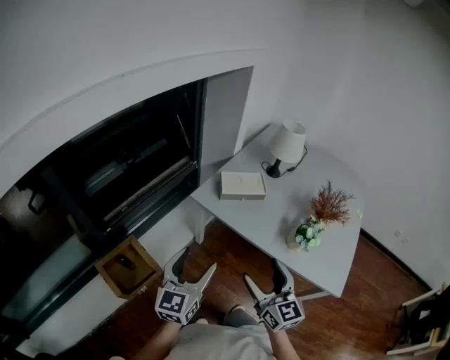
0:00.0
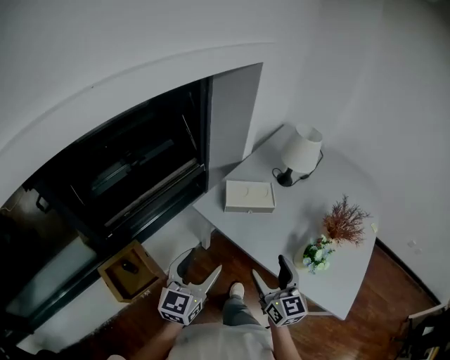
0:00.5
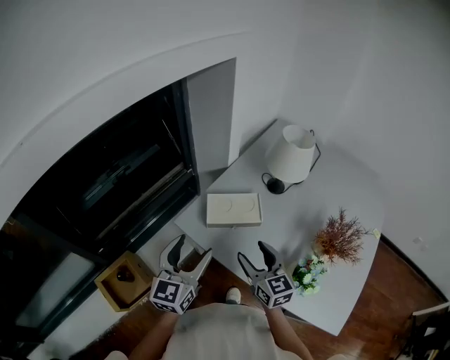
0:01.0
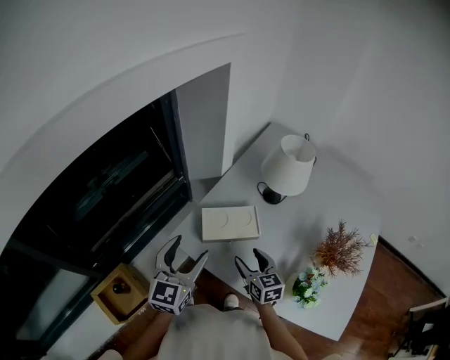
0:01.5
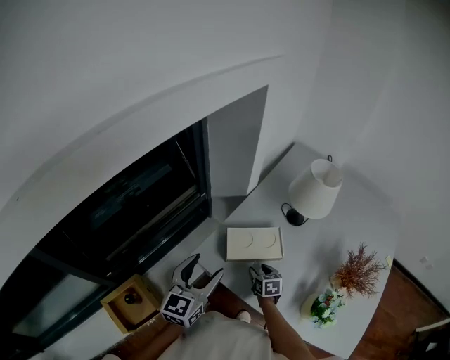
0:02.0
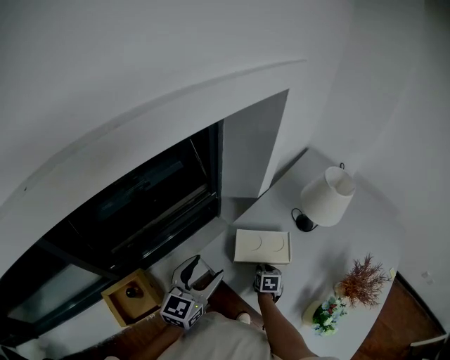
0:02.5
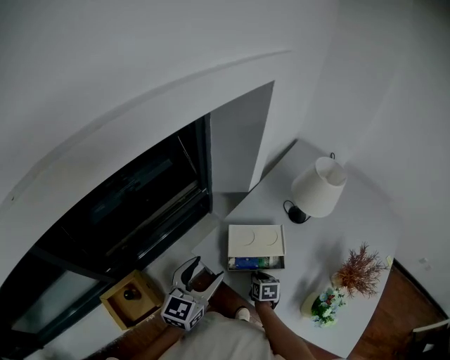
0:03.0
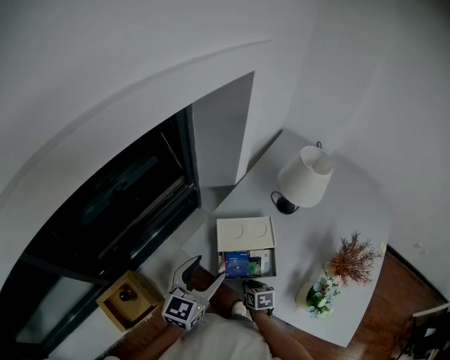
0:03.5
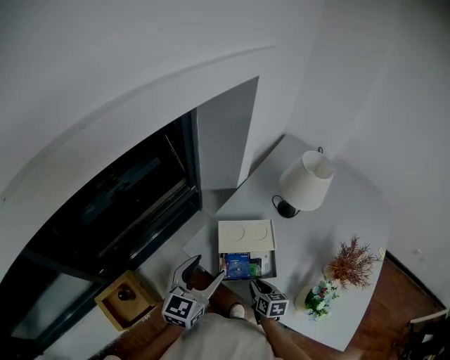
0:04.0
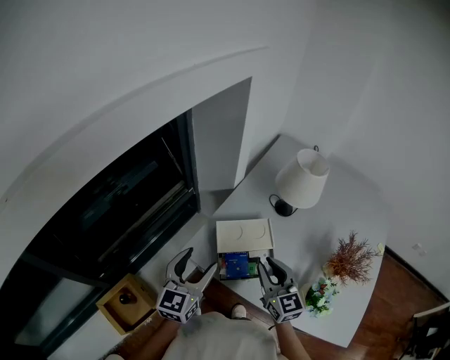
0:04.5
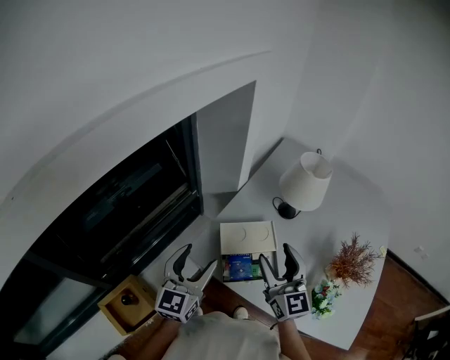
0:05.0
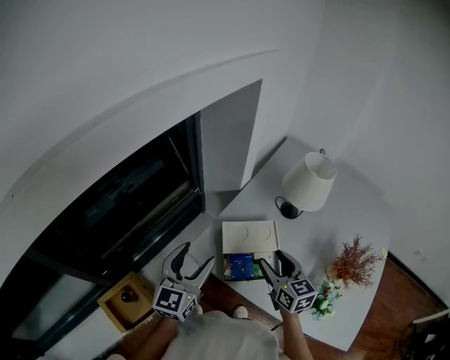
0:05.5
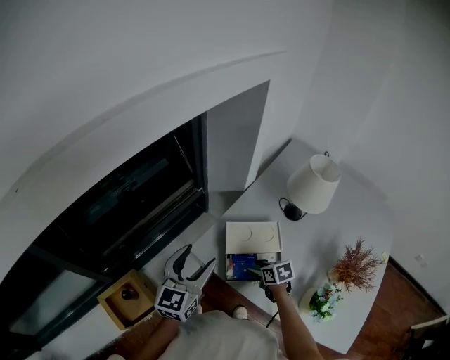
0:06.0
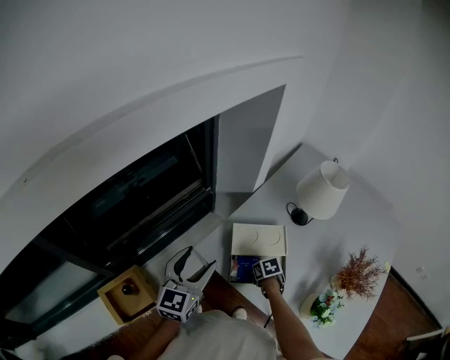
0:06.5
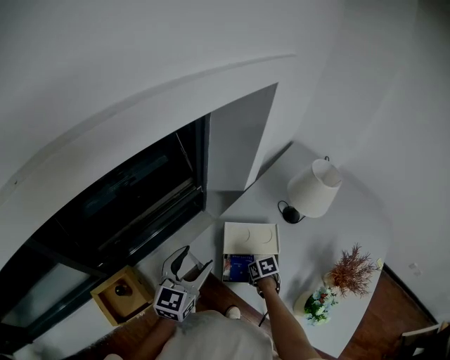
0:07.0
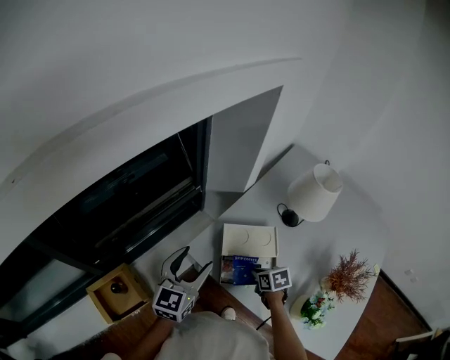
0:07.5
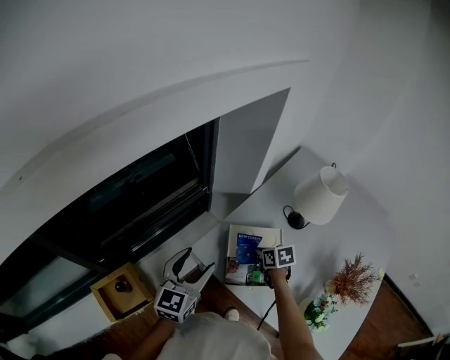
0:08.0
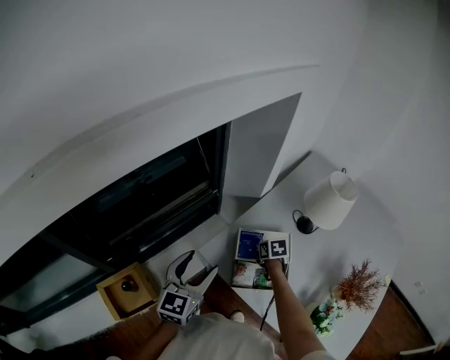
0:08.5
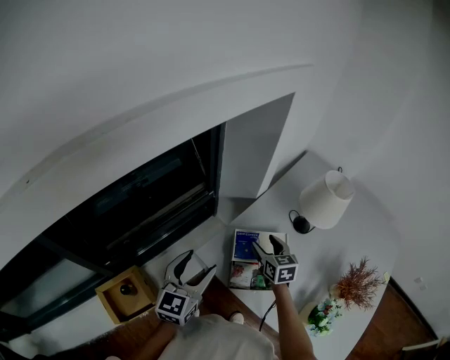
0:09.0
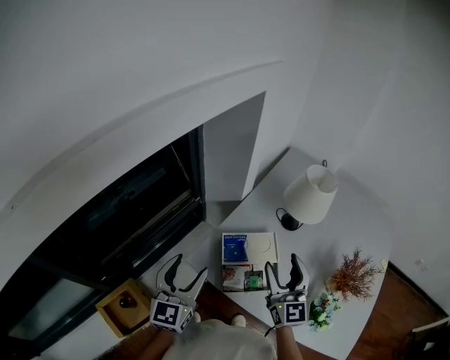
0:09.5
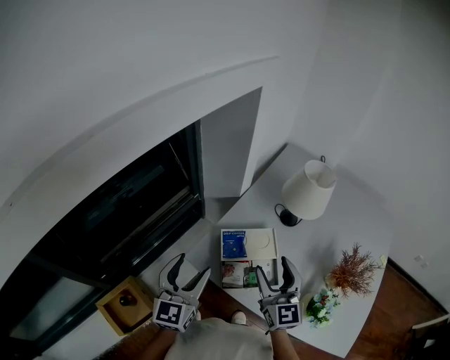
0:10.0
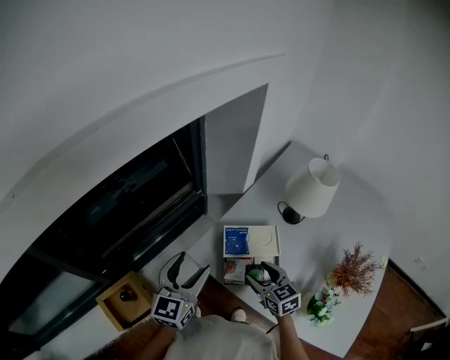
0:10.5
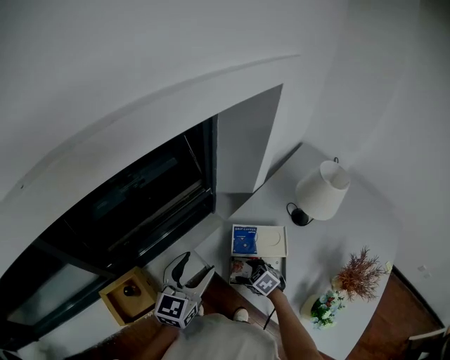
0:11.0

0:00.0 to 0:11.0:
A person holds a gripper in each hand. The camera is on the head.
0:00.0 to 0:02.0: The left gripper heads forward, covering roughly 35 cm; the right gripper goes some 50 cm forward and downward, and points its fingers some 40 degrees further downward.
0:02.0 to 0:03.5: The right gripper moves backward, some 10 cm, and closes its fingers.
0:03.5 to 0:05.5: The left gripper shifts some 5 cm to the left, while the right gripper travels upward by some 25 cm, points its fingers roughly 40 degrees further upward, and opens up.
0:05.5 to 0:07.5: The right gripper goes some 20 cm downward, angles its fingers downward, by roughly 40 degrees, and closes.
0:07.5 to 0:09.0: The right gripper travels forward and upward by about 15 cm, angles its fingers upward, by roughly 30 degrees, and opens its fingers.
0:09.0 to 0:11.0: The right gripper moves downward, backward and to the left, roughly 20 cm, and turns by approximately 40 degrees.

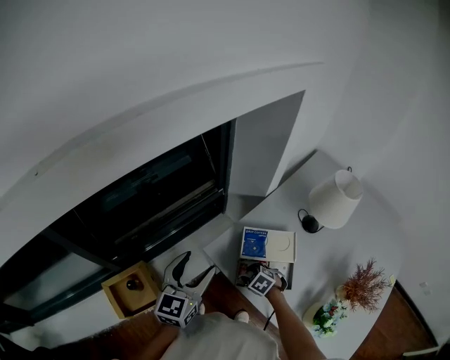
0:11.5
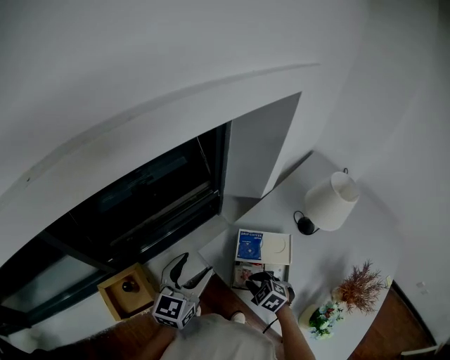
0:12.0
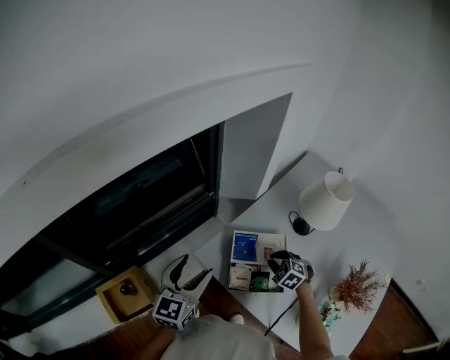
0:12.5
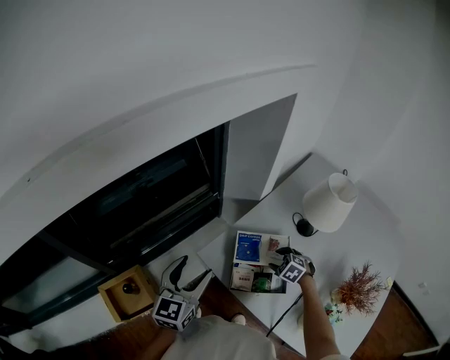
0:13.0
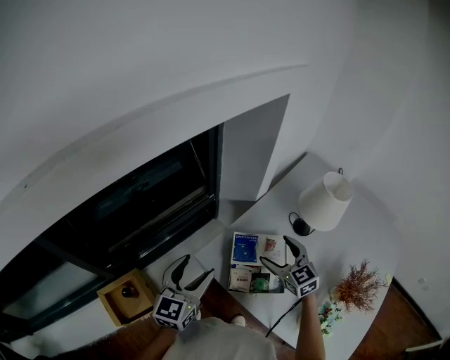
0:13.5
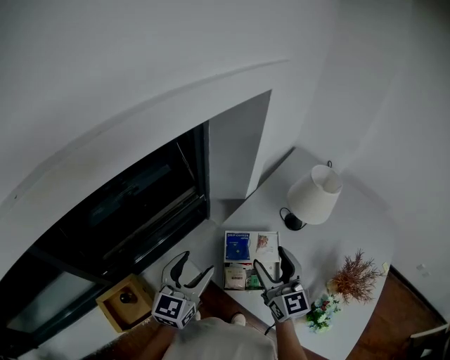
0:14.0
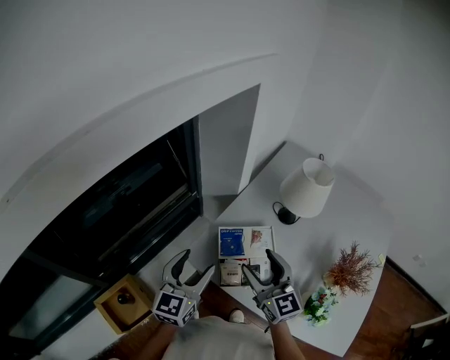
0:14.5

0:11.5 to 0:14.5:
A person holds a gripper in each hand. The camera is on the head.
0:11.5 to 0:13.0: The right gripper shifts approximately 15 cm to the right and forward.
0:13.0 to 0:14.5: The right gripper shifts approximately 25 cm upward, and points its fingers approximately 60 degrees further upward; the left gripper goes about 5 cm to the right.

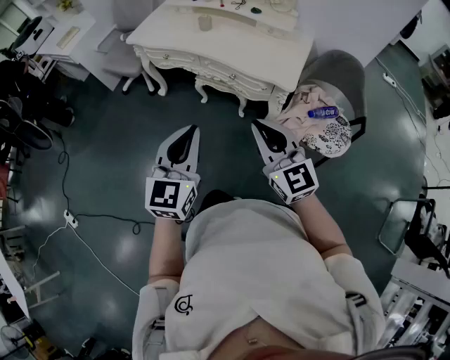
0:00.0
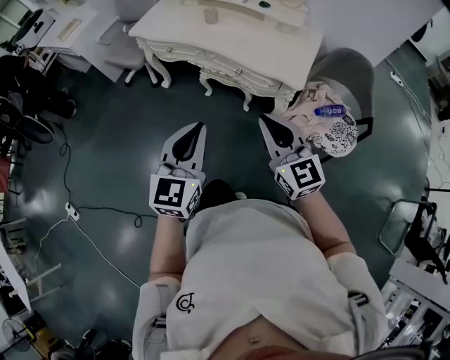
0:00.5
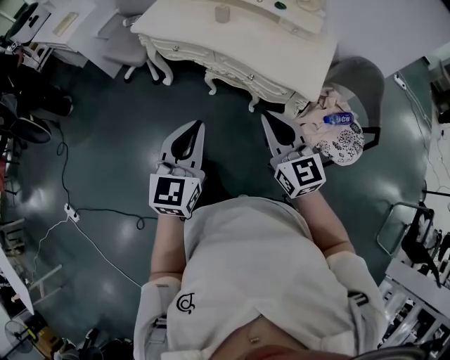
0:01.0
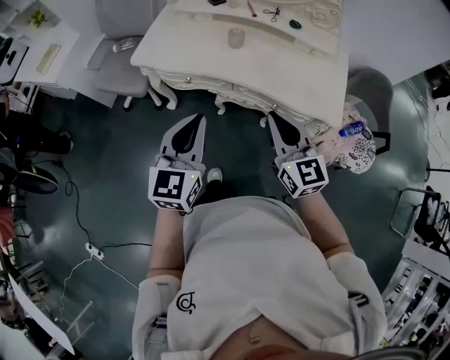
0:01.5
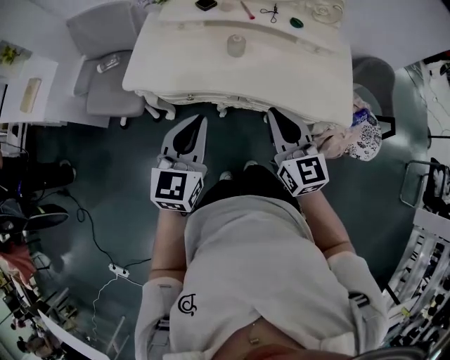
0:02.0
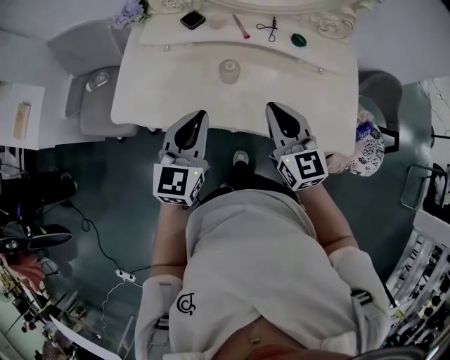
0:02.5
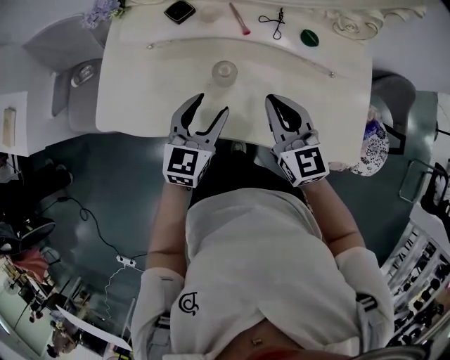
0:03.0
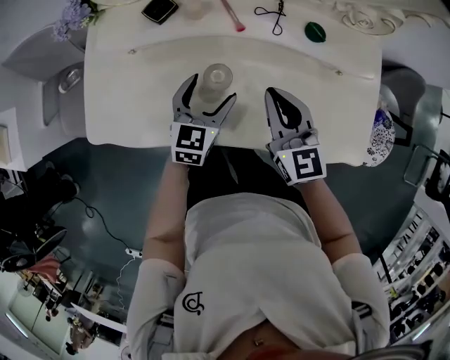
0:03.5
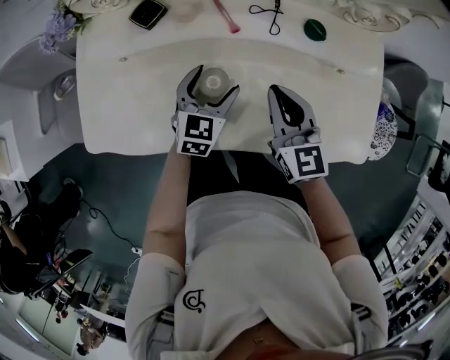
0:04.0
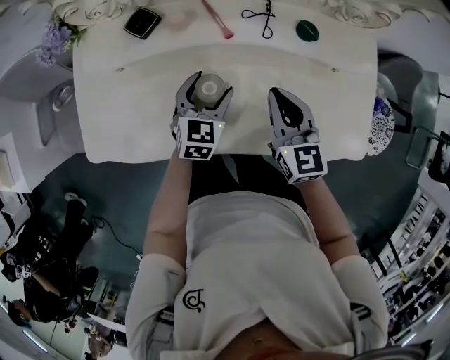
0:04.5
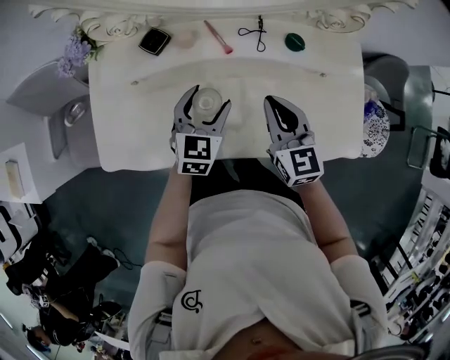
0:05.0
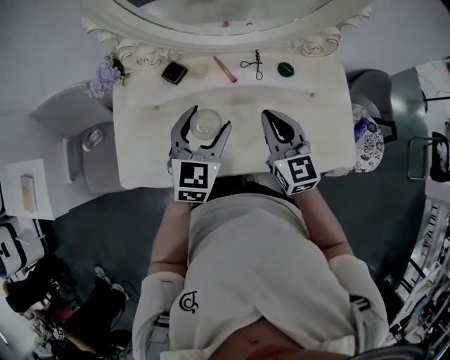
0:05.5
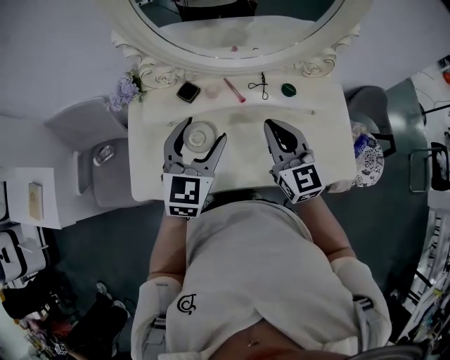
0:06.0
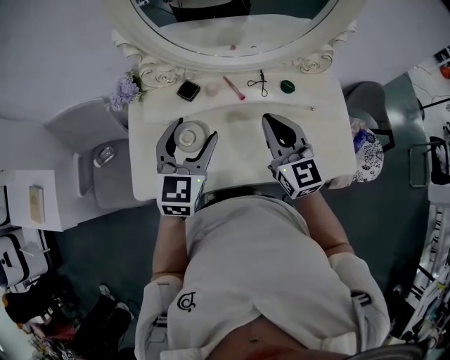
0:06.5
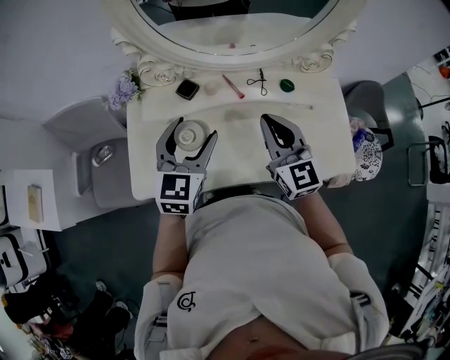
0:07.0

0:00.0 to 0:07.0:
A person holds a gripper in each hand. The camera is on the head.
0:00.0 to 0:02.0: Both grippers are carried forward and to the left, about 40 cm. The right gripper turns by roughly 30 degrees.
0:02.0 to 0:03.5: The two grippers go some 35 cm forward and downward. The left gripper opens.
0:03.5 to 0:05.0: The left gripper shifts by about 5 cm.
0:05.0 to 0:07.0: The left gripper travels upward and to the left by about 20 cm, while the right gripper moves upward, roughly 15 cm.

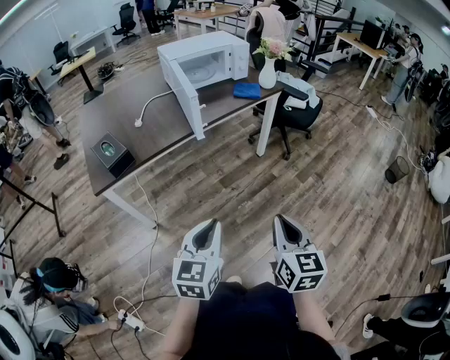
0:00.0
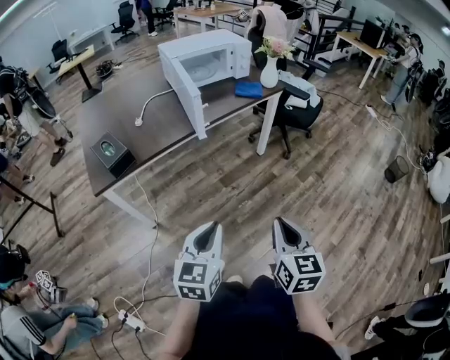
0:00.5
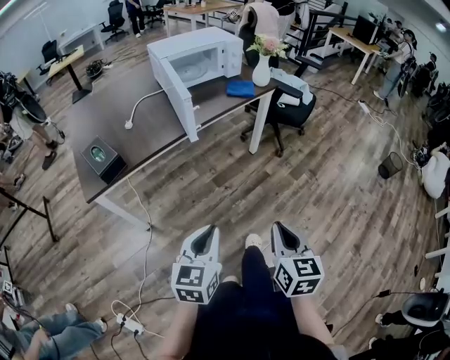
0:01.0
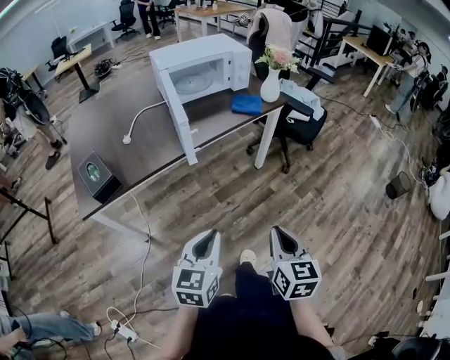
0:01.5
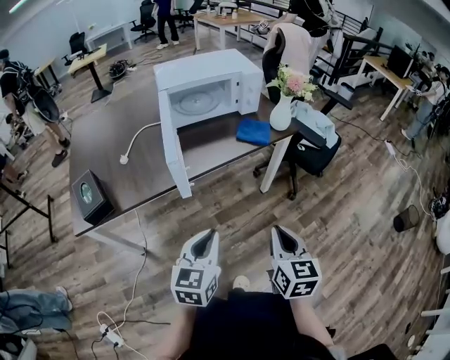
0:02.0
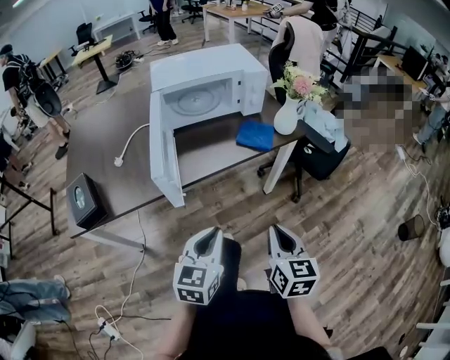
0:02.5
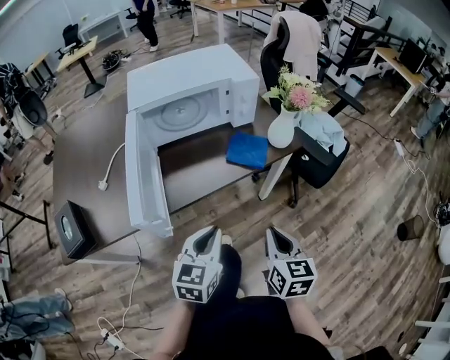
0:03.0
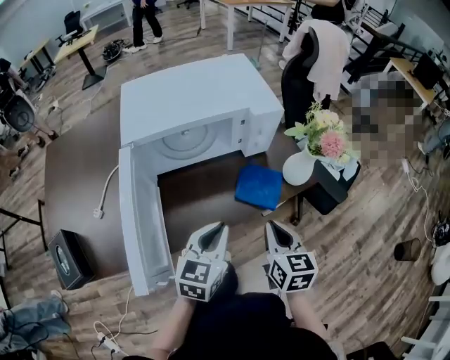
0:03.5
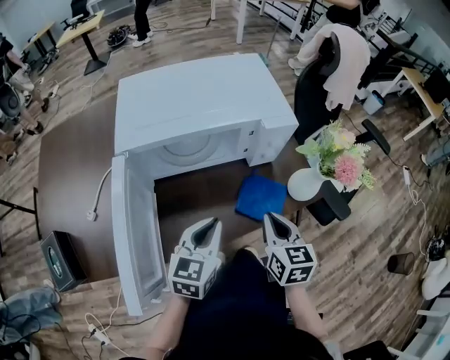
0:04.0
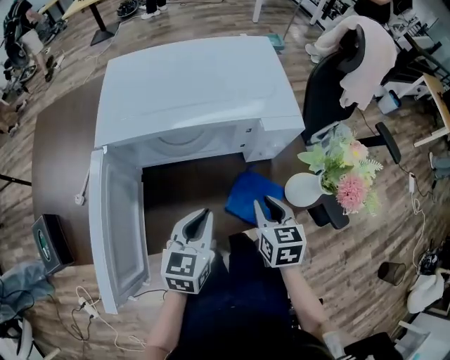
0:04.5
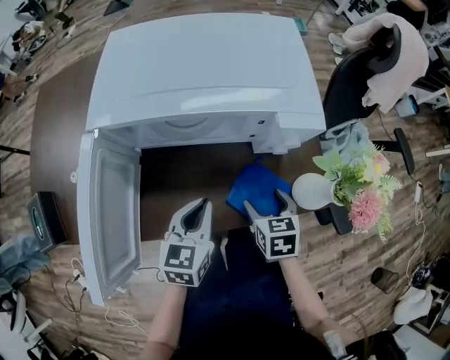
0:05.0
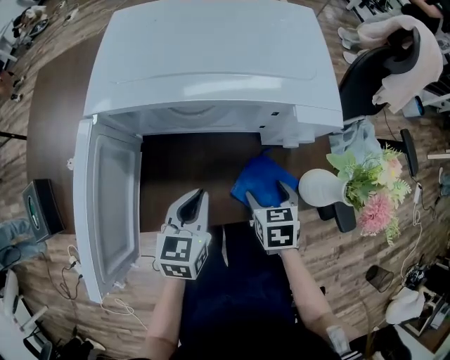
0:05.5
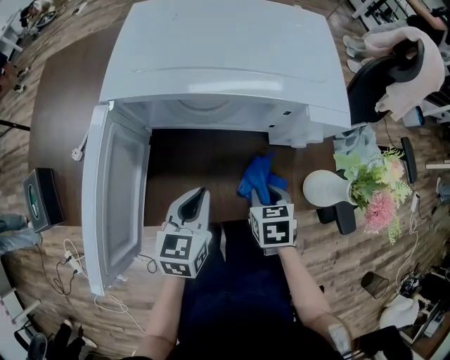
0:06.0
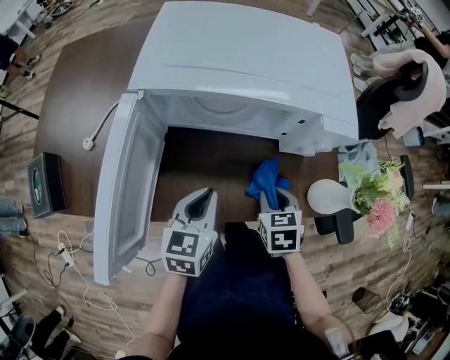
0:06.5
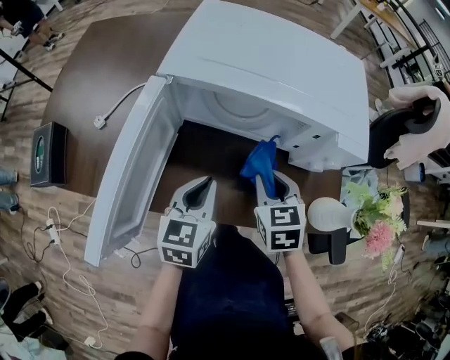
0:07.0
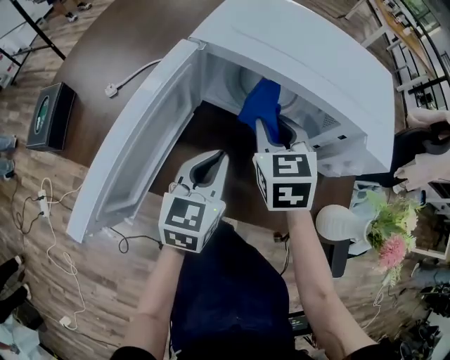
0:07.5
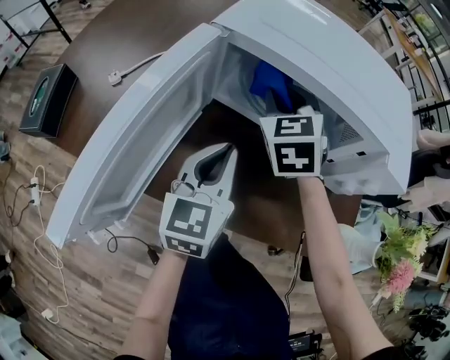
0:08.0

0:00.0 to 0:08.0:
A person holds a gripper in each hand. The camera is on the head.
0:00.0 to 0:02.0: The left gripper changes place by approximately 25 cm.
0:02.0 to 0:04.0: The left gripper changes place by approximately 40 cm.
0:04.0 to 0:06.0: The left gripper heads downward, covering about 5 cm, and changes its angle by about 20 degrees.
0:06.0 to 0:08.0: The left gripper shifts by approximately 10 cm, and swivels roughly 30 degrees.
